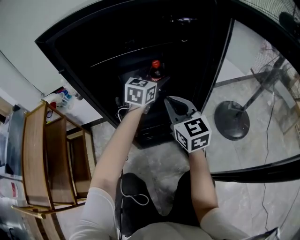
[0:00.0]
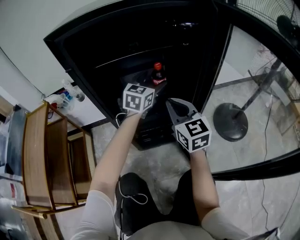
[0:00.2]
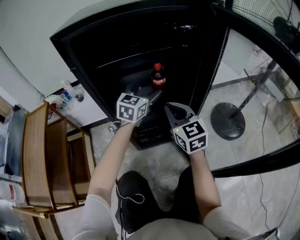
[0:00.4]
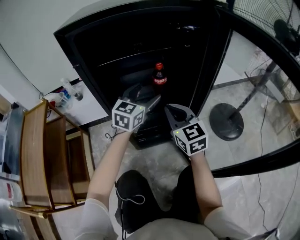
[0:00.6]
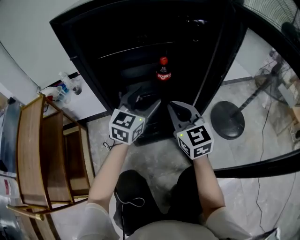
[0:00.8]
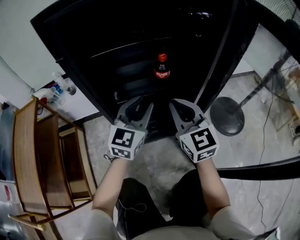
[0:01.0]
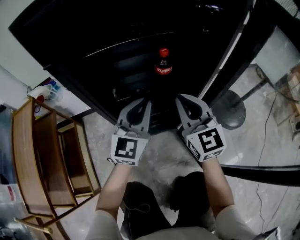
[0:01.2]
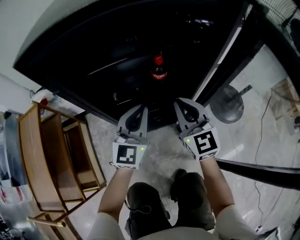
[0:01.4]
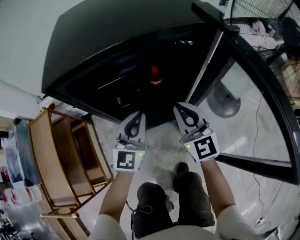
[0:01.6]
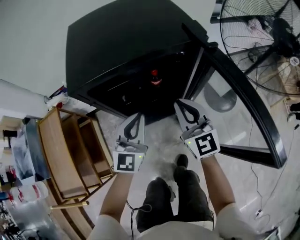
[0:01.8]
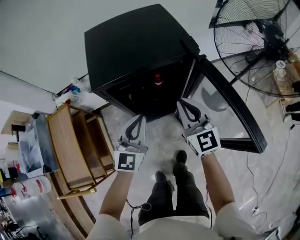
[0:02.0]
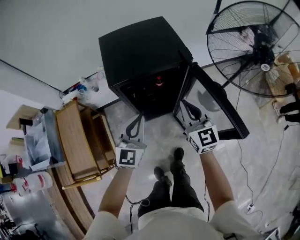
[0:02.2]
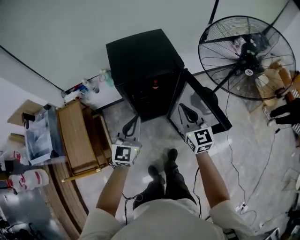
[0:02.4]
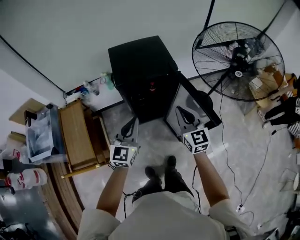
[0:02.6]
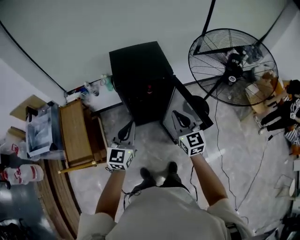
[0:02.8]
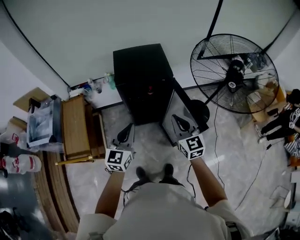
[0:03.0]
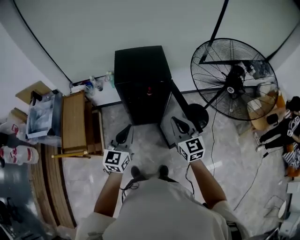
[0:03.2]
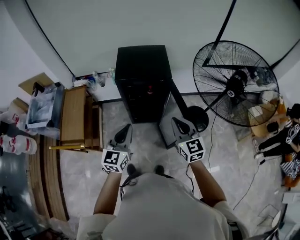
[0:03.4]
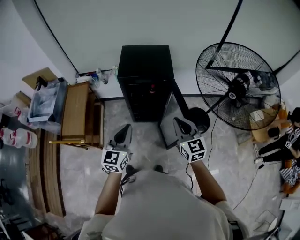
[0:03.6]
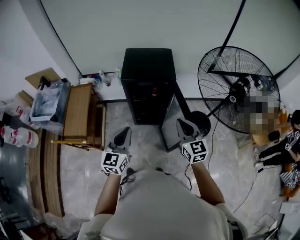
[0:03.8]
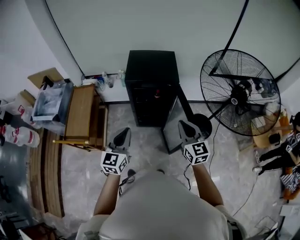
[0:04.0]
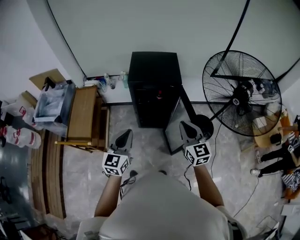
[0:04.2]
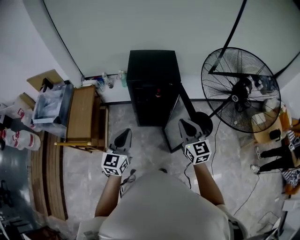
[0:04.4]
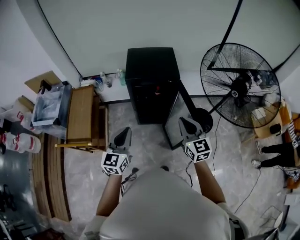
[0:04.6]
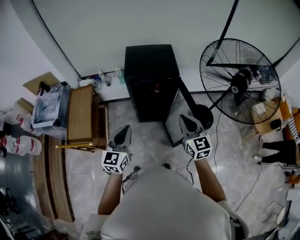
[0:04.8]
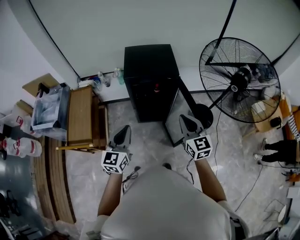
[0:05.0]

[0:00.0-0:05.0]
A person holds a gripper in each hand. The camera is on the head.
0:00.0 to 0:01.6: The right gripper travels upward by roughly 10 cm; the left gripper heads backward and upward, covering approximately 20 cm, and closes.
0:01.6 to 0:03.4: Both grippers move upward and backward, some 50 cm.
0:03.4 to 0:05.0: The left gripper is displaced to the left by roughly 5 cm.

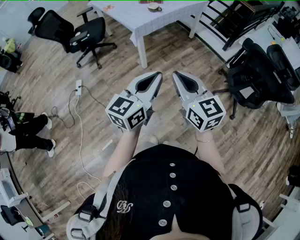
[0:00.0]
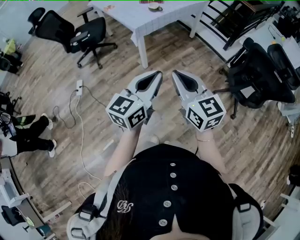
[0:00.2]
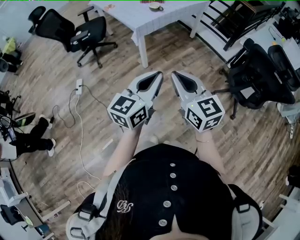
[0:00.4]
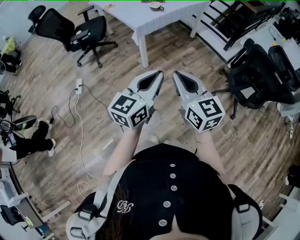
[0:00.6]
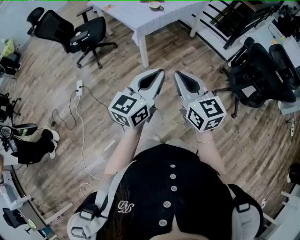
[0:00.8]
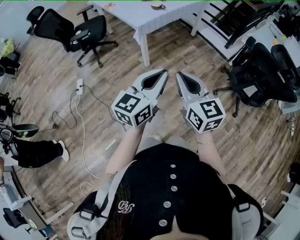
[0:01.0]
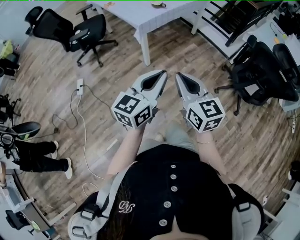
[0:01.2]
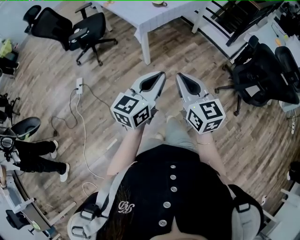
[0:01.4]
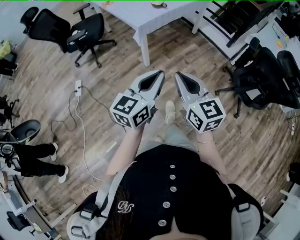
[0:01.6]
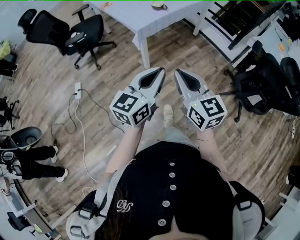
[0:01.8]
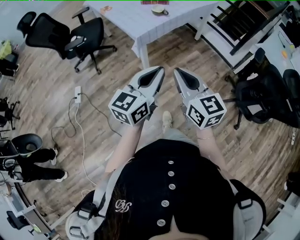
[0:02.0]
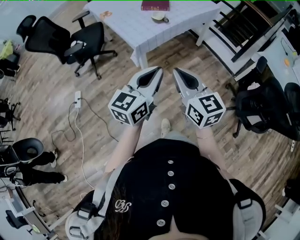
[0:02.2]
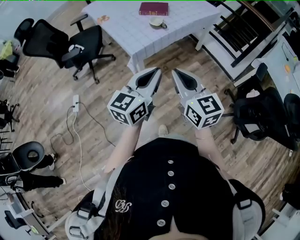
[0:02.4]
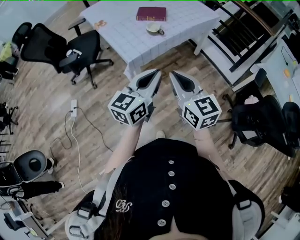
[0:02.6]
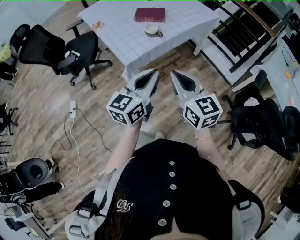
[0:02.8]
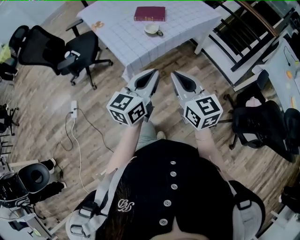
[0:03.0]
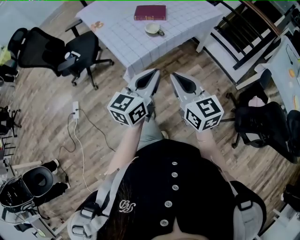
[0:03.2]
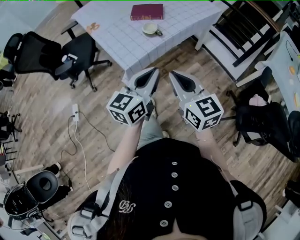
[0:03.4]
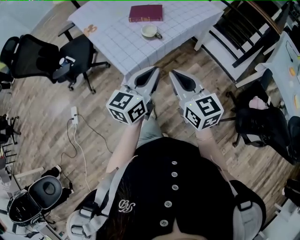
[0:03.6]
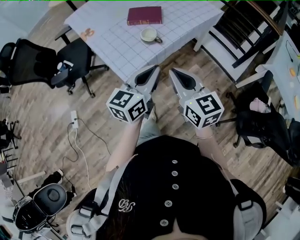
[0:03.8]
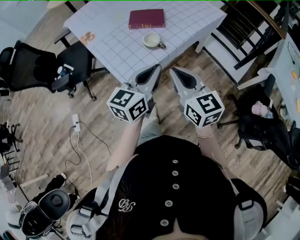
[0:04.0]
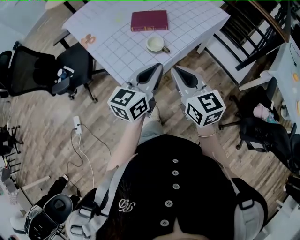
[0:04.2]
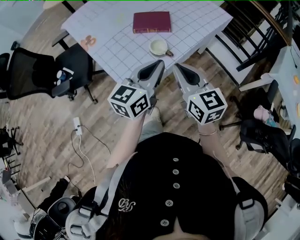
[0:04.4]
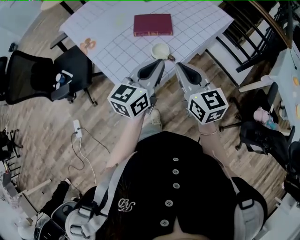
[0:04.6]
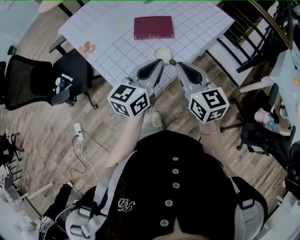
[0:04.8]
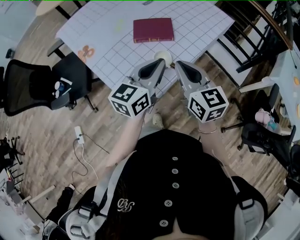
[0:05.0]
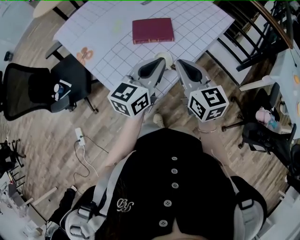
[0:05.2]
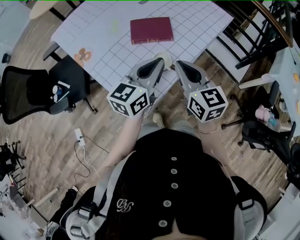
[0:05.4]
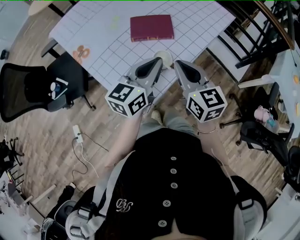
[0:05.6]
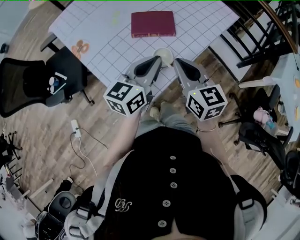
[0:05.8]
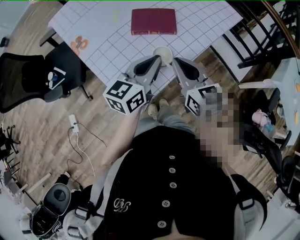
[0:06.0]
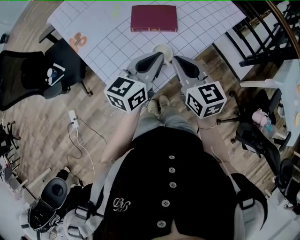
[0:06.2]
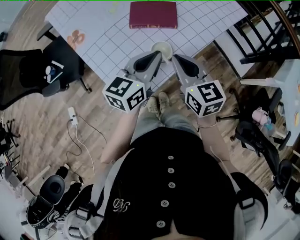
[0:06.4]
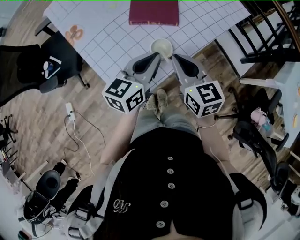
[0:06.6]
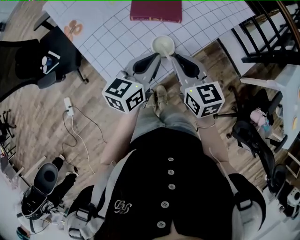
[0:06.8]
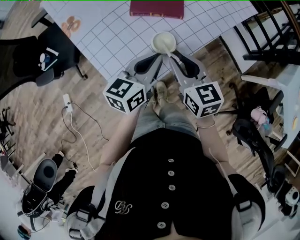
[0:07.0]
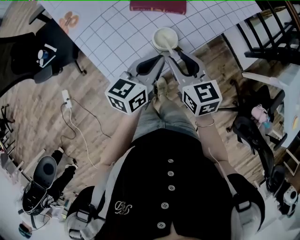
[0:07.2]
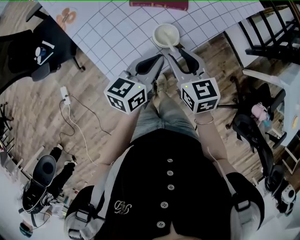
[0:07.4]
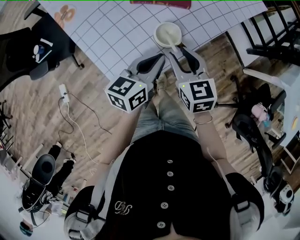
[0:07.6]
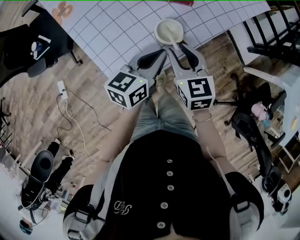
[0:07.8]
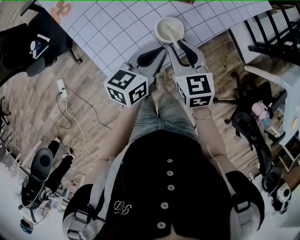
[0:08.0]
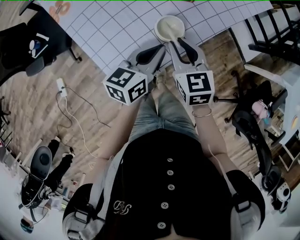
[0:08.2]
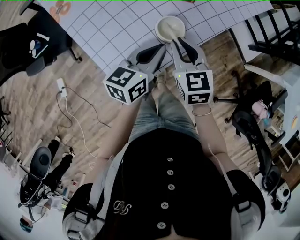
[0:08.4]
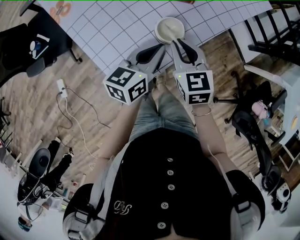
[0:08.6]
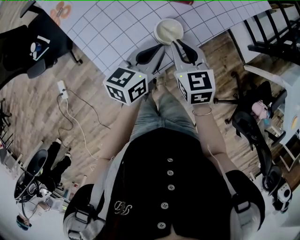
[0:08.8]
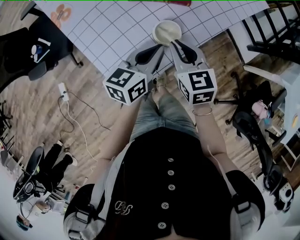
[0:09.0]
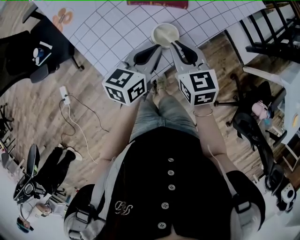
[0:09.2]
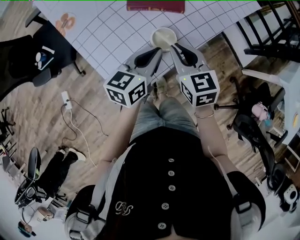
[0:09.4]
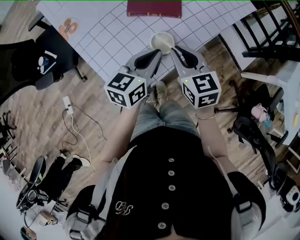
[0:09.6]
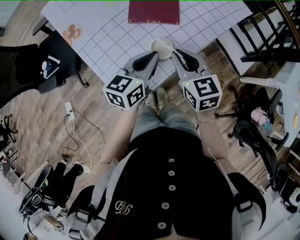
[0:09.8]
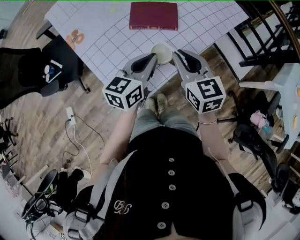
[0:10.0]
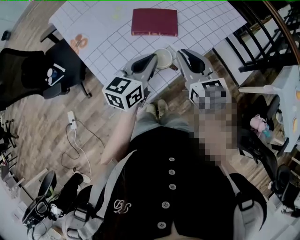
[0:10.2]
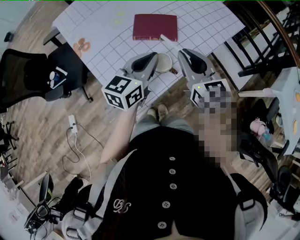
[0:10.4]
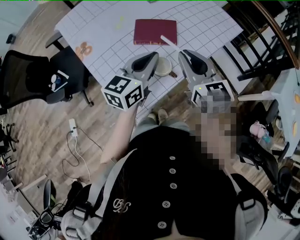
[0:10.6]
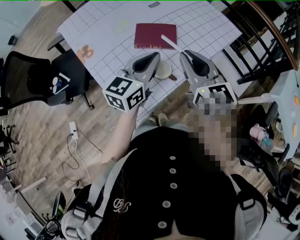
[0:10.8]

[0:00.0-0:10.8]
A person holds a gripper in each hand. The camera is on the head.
0:00.0 to 0:01.6: Both grippers move forward, about 5 cm.
0:01.6 to 0:03.0: The grippers both shift forward by approximately 35 cm.
0:03.0 to 0:04.6: The grippers both shift forward by some 25 cm.
0:04.6 to 0:06.2: The right gripper heads forward and downward, covering approximately 10 cm. The left gripper moves forward, some 10 cm.
0:06.2 to 0:07.8: Both grippers travel together downward, approximately 15 cm. The right gripper opens up.
0:07.8 to 0:09.2: The grippers stay close to where they were, moving slightly.
0:09.2 to 0:10.8: The two grippers go some 20 cm upward. The left gripper turns by some 20 degrees, while the right gripper swivels approximately 20 degrees.

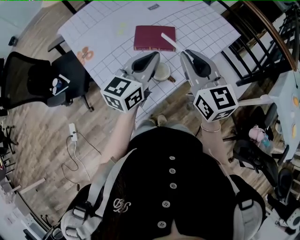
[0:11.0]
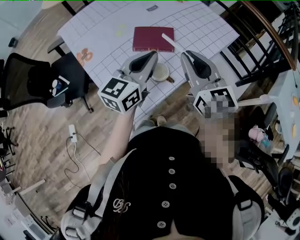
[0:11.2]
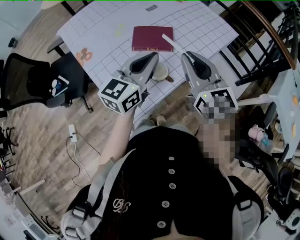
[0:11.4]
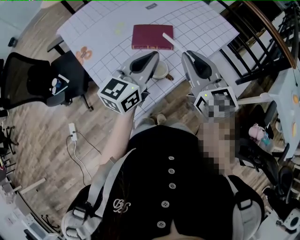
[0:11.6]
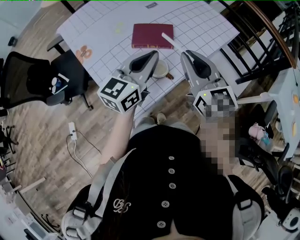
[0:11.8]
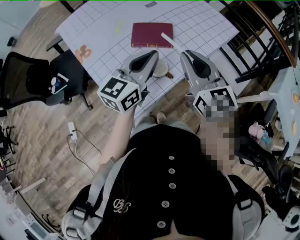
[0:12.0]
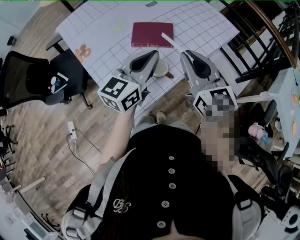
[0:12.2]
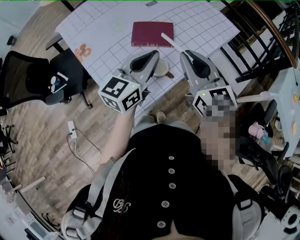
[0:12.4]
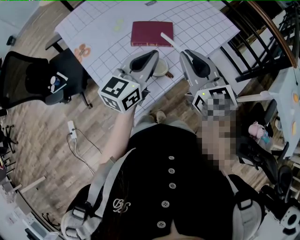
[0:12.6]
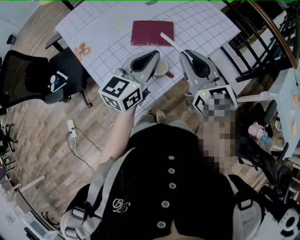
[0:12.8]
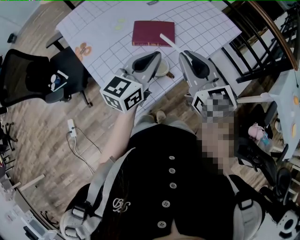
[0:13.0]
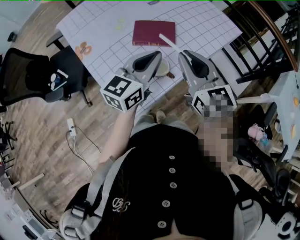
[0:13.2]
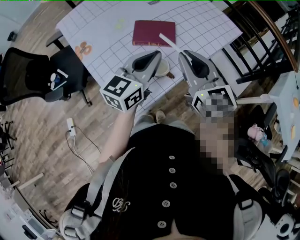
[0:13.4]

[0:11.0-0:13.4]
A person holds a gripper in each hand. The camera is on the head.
0:11.0 to 0:13.4: The grippers make only small movements.

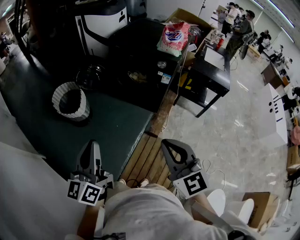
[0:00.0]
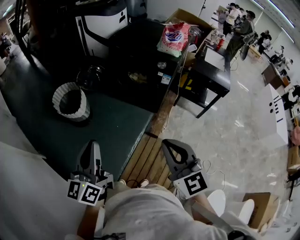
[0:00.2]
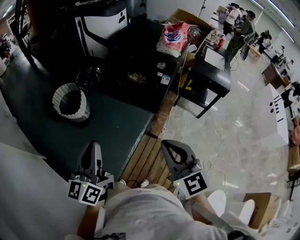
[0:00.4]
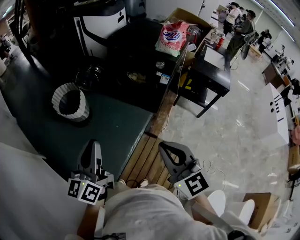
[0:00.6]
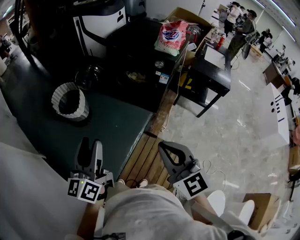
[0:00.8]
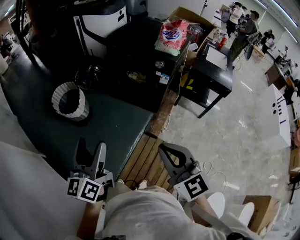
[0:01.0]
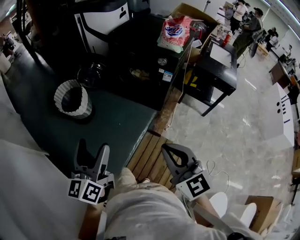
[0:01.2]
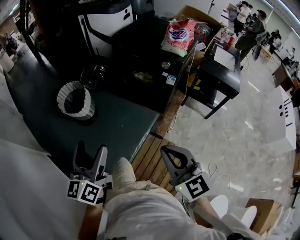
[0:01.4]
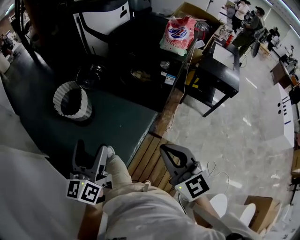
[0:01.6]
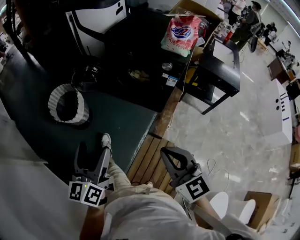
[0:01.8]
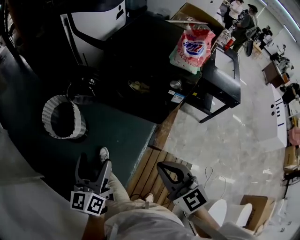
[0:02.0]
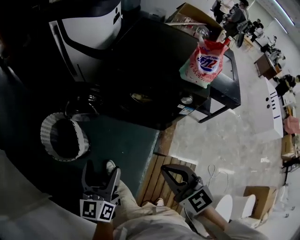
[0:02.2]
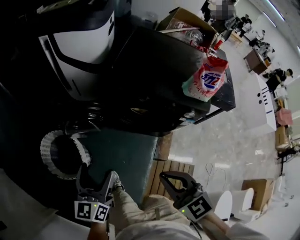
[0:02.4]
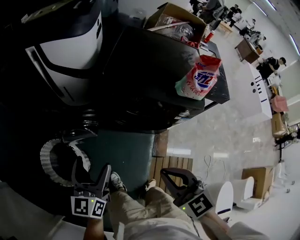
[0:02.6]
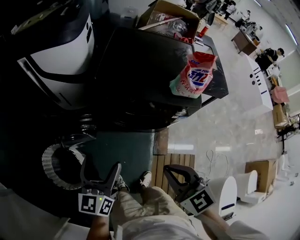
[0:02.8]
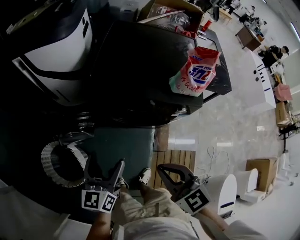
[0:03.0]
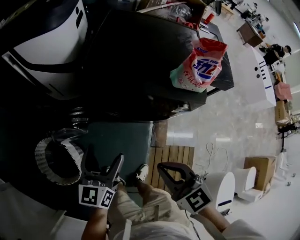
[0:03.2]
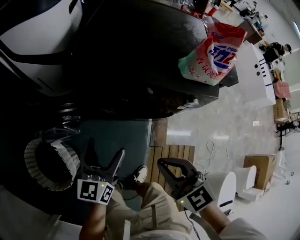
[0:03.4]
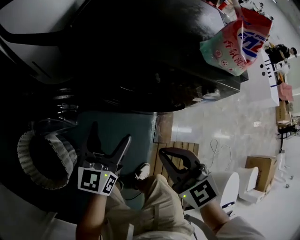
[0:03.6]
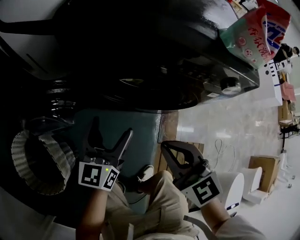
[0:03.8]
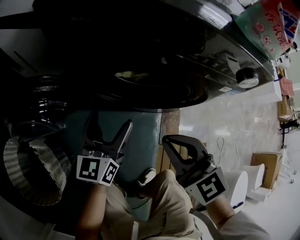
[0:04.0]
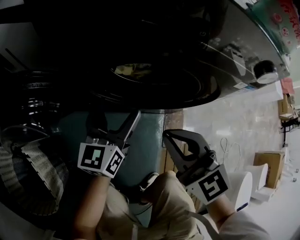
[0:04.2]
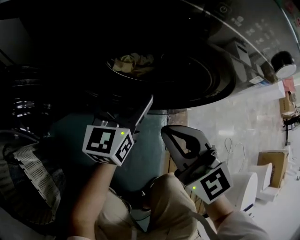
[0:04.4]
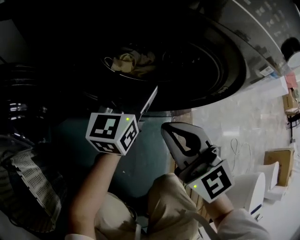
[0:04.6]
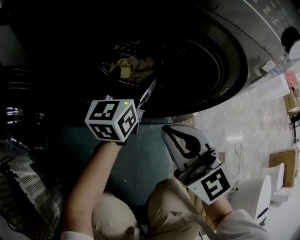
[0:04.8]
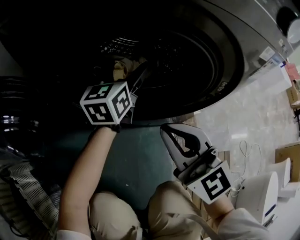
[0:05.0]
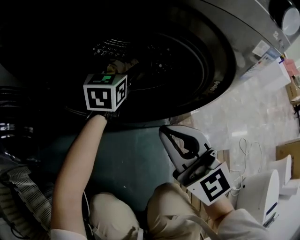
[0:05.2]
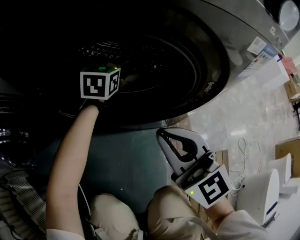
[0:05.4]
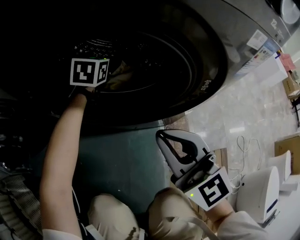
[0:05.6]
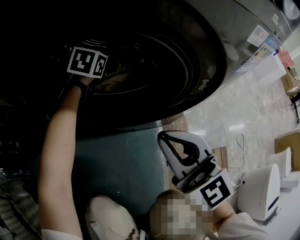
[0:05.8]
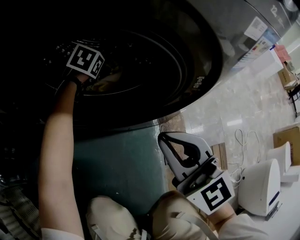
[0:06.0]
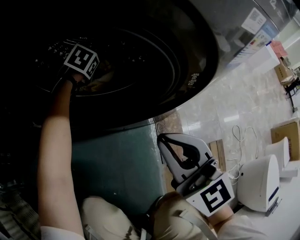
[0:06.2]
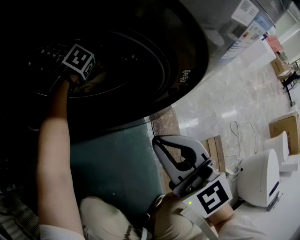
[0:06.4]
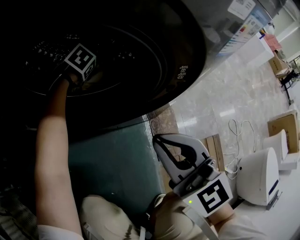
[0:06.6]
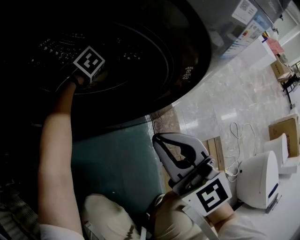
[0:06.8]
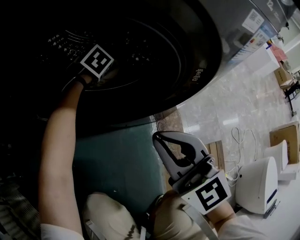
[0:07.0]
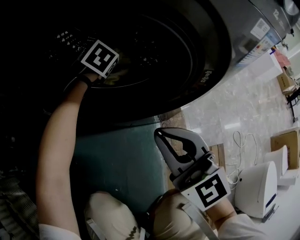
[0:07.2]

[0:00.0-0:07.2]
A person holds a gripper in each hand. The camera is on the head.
0:00.0 to 0:01.4: The left gripper opens up. The right gripper ends up approximately 5 cm from where it was.
0:01.4 to 0:02.8: The two grippers travel together, forward, approximately 50 cm. The left gripper rotates approximately 30 degrees; the right gripper changes its angle by about 30 degrees.
0:02.8 to 0:04.4: The right gripper heads downward, covering about 40 cm, while the left gripper heads downward, to the right and forward, covering approximately 50 cm.
0:04.4 to 0:05.8: The left gripper shifts roughly 30 cm forward and downward, and tips its fingers downward by about 40 degrees; the right gripper heads to the right and downward, covering roughly 15 cm.
0:05.8 to 0:07.2: The left gripper moves about 10 cm downward and comes back, turns by about 20 degrees, and closes.
